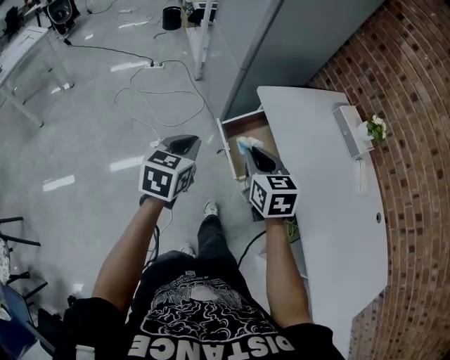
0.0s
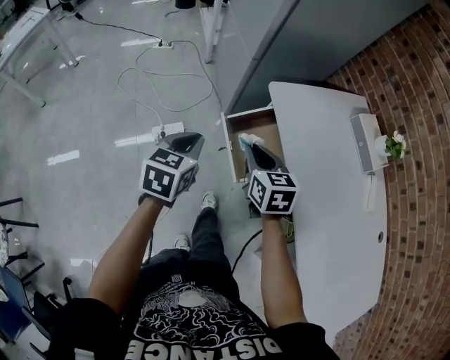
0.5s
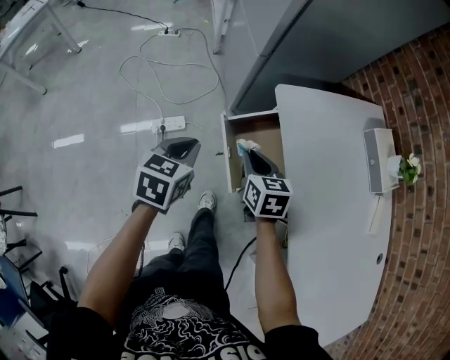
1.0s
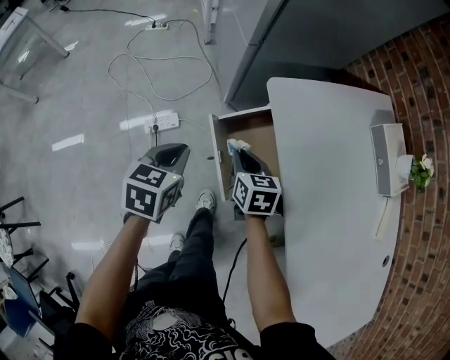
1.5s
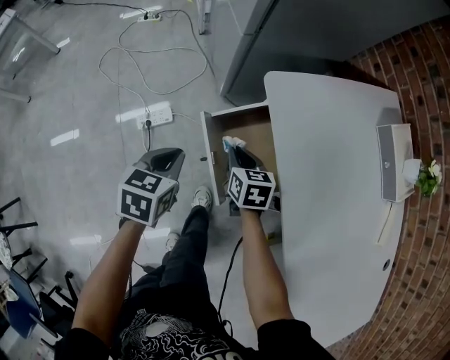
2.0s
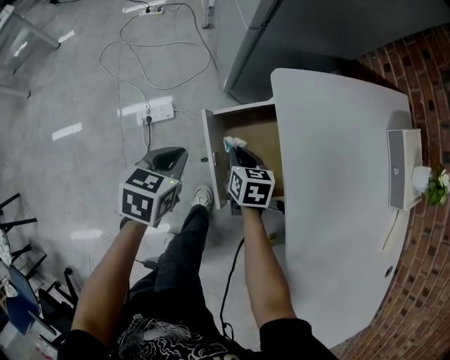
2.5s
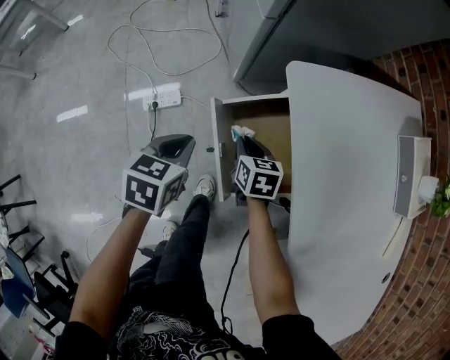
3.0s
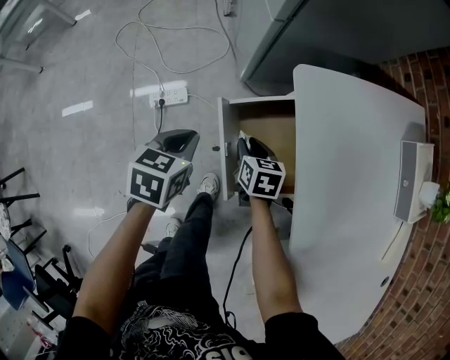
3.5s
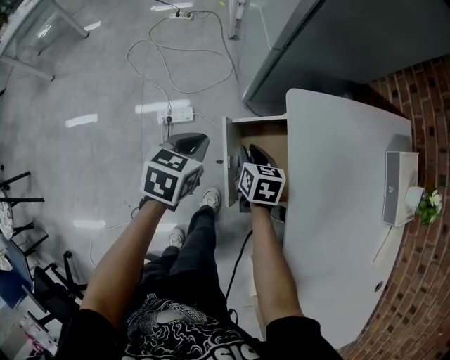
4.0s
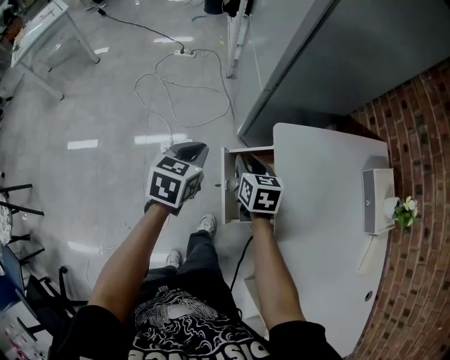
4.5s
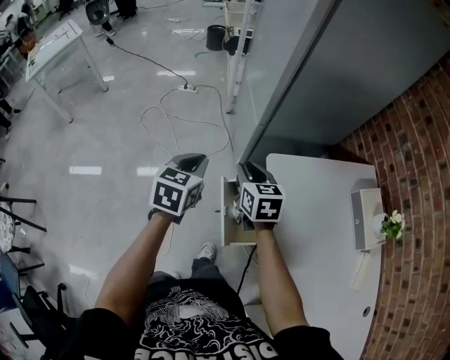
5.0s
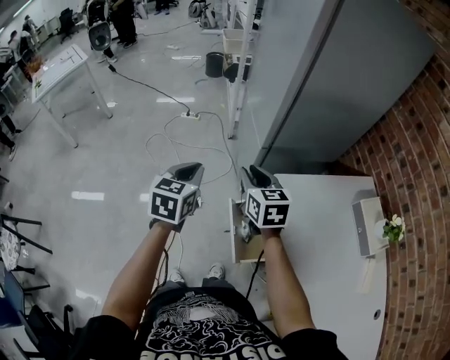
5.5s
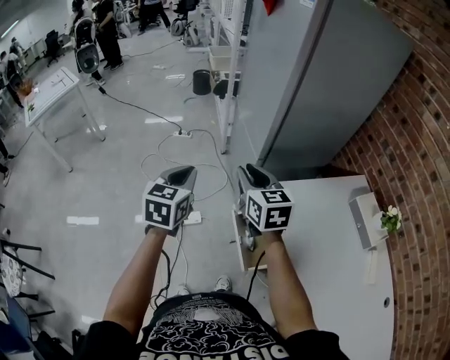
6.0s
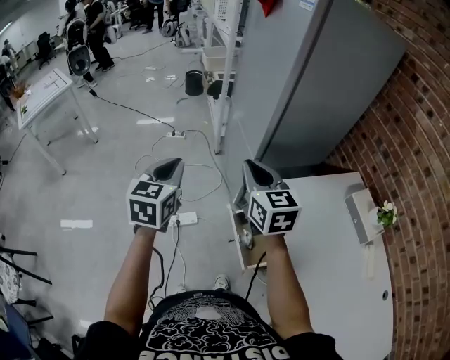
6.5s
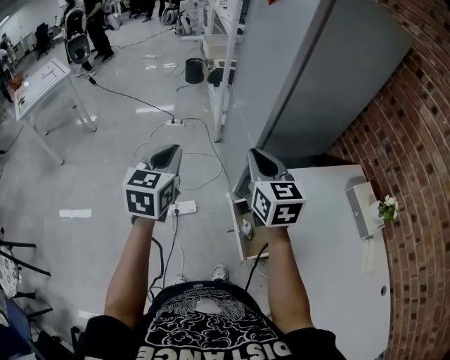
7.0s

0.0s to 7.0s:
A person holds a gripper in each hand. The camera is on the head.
0.0s to 2.0s: The grippers both shift downward and forward by approximately 30 cm. The left gripper changes its angle by roughly 20 degrees. Meanwhile the right gripper turns by approximately 20 degrees.
2.0s to 3.5s: The right gripper is displaced downward by some 5 cm.
3.5s to 5.0s: The grippers both shift upward by roughly 25 cm. The right gripper swivels about 20 degrees.
5.0s to 7.0s: The left gripper travels to the left and upward by approximately 20 cm. Meanwhile the right gripper is displaced upward by roughly 20 cm, rotates roughly 20 degrees, and closes its fingers.

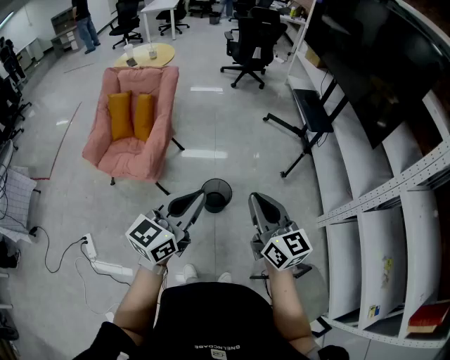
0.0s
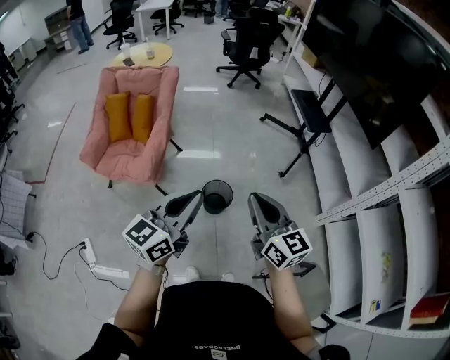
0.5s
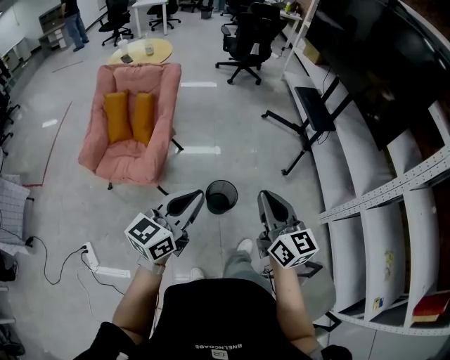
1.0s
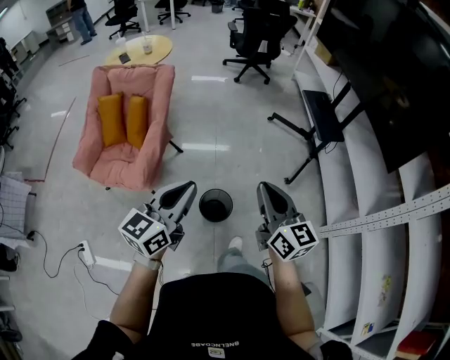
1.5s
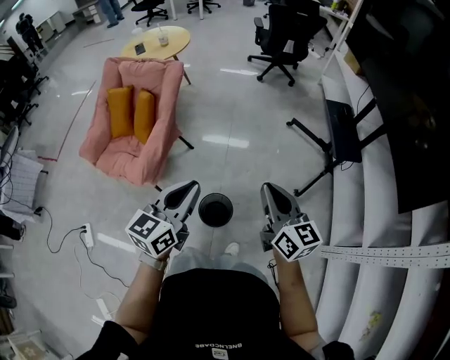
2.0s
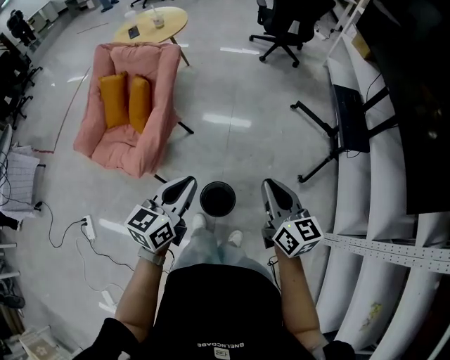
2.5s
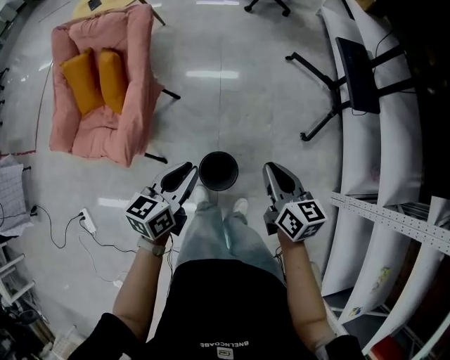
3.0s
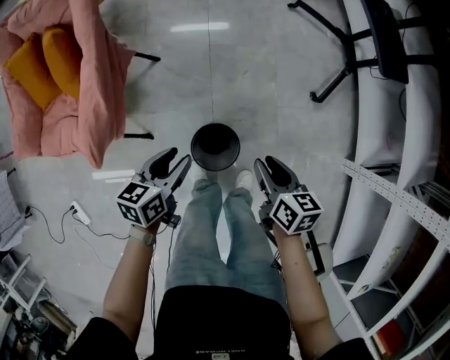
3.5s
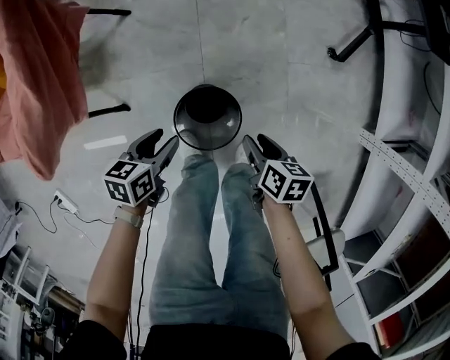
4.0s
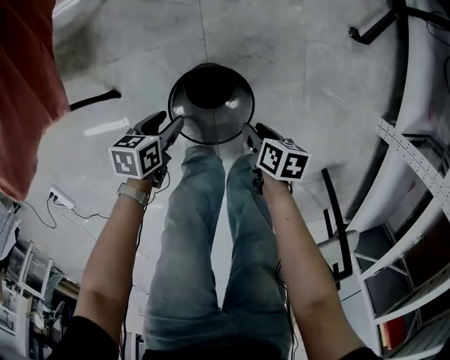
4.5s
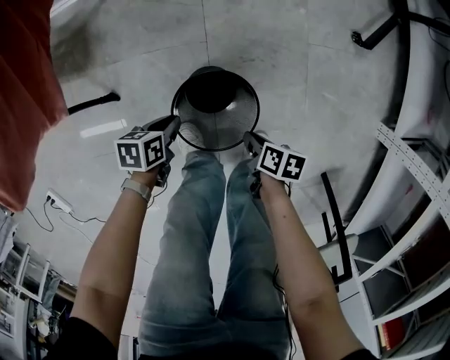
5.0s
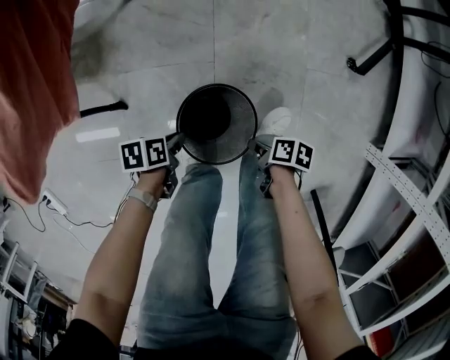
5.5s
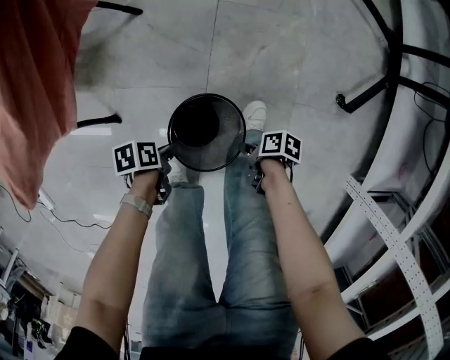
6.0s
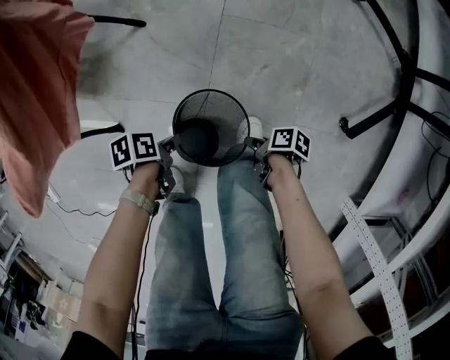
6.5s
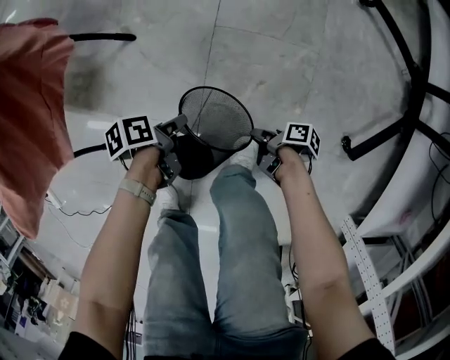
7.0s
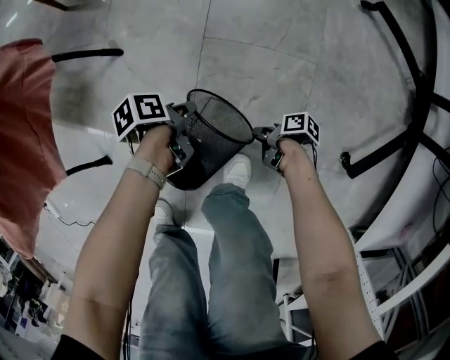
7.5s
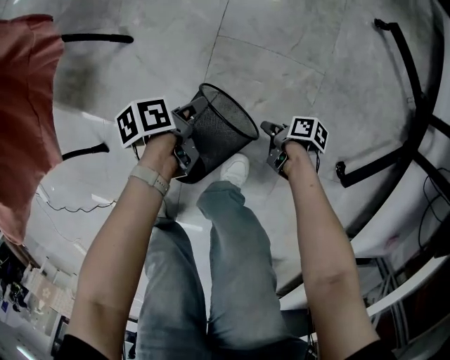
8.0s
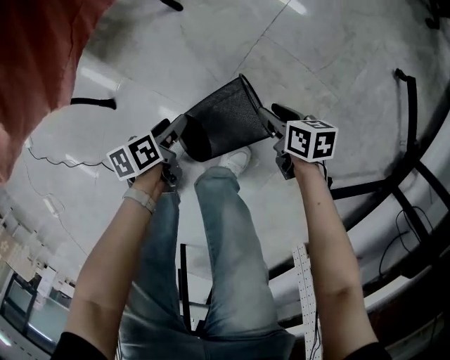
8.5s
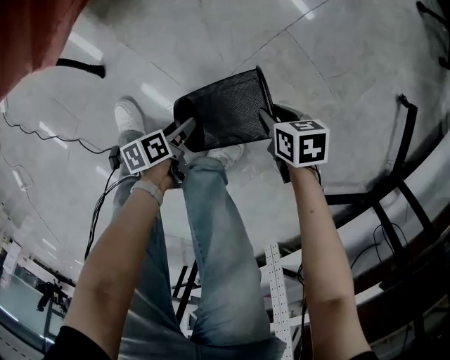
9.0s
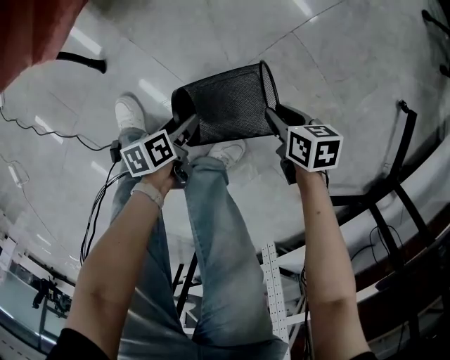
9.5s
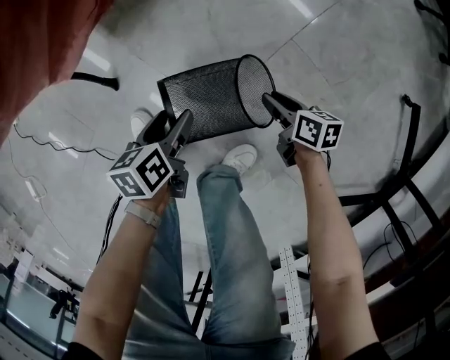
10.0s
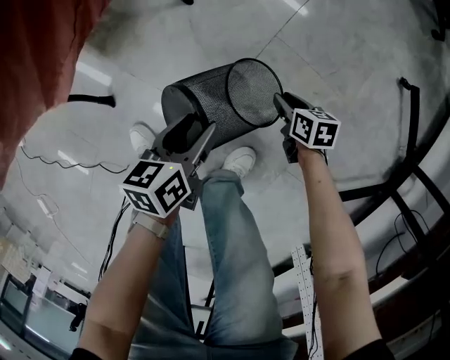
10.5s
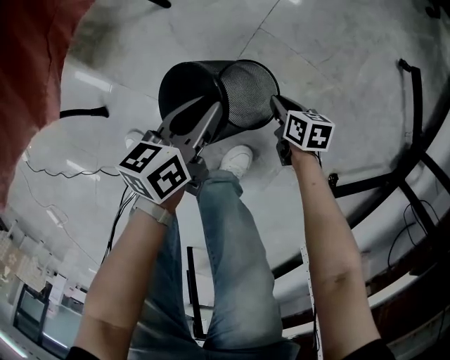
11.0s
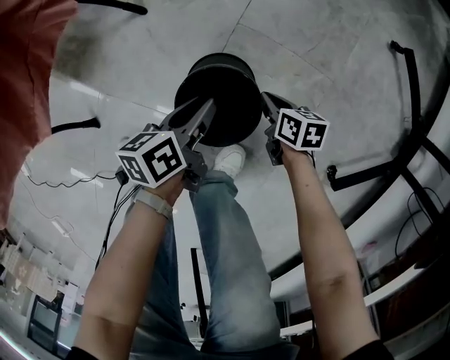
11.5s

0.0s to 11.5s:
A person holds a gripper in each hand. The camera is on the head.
0.0s to 2.0s: The two grippers go some 25 cm forward.
2.0s to 4.0s: Both grippers travel together downward, roughly 60 cm. The left gripper tilts its fingers some 40 degrees downward, and opens. Meanwhile the right gripper points its fingers some 50 degrees further downward, and opens its fingers.
4.0s to 6.0s: Both grippers move downward, about 15 cm. The left gripper twists some 40 degrees counterclockwise, seen from behind, and closes up. Meanwhile the right gripper swivels roughly 40 degrees, and closes.
6.0s to 7.5s: The left gripper ends up roughly 35 cm from where it was, and changes its angle by roughly 20 degrees, while the right gripper moves approximately 30 cm.
7.5s to 9.5s: The right gripper moves about 20 cm, and rolls counterclockwise, seen from behind, by some 80 degrees. Meanwhile the left gripper travels upward and back again, some 5 cm each way, turns by about 30 degrees, and opens.
9.5s to 11.5s: The right gripper moves approximately 10 cm, turns by some 30 degrees, and closes its fingers. Meanwhile the left gripper moves about 25 cm, changes its angle by roughly 30 degrees, and closes.

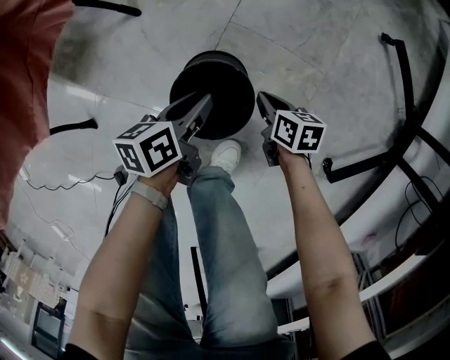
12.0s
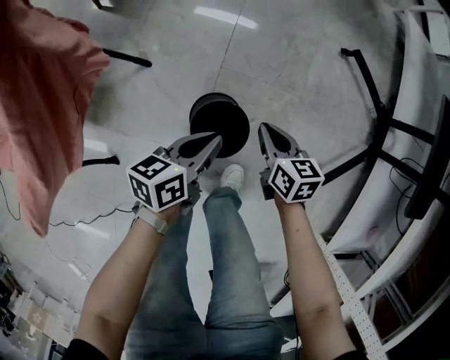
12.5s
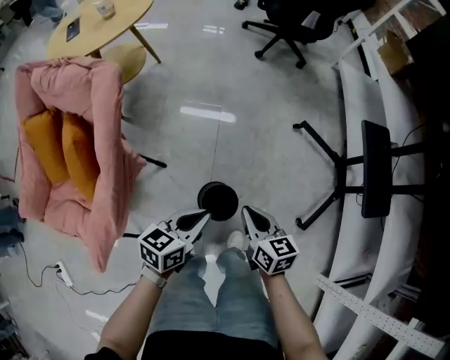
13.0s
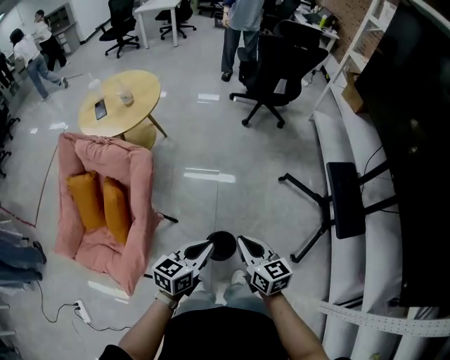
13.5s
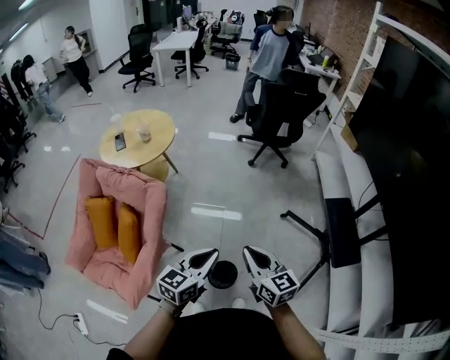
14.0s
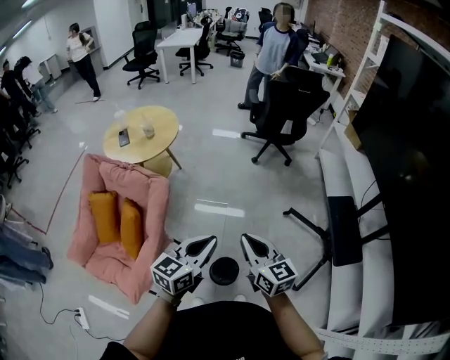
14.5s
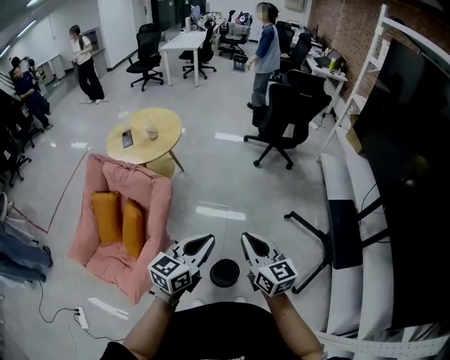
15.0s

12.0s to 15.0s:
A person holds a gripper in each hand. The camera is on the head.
12.0s to 13.5s: Both grippers move upward, some 60 cm. The right gripper tilts its fingers roughly 30 degrees upward; the left gripper rolls clockwise, seen from behind, by about 40 degrees.
13.5s to 15.0s: Both grippers travel together upward, about 15 cm.

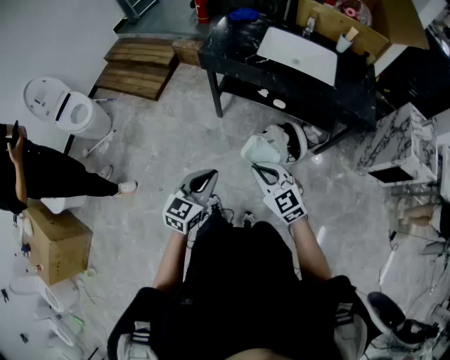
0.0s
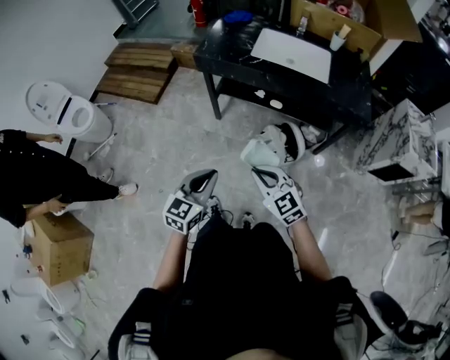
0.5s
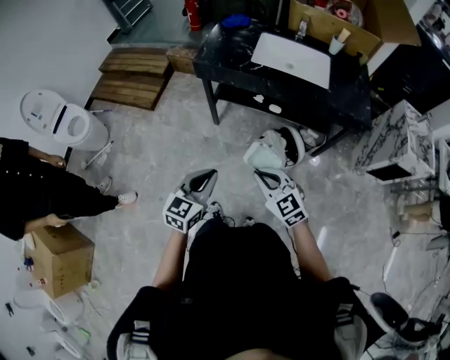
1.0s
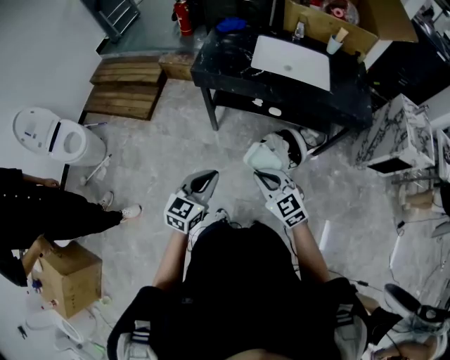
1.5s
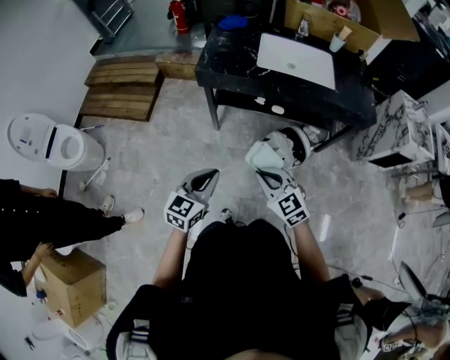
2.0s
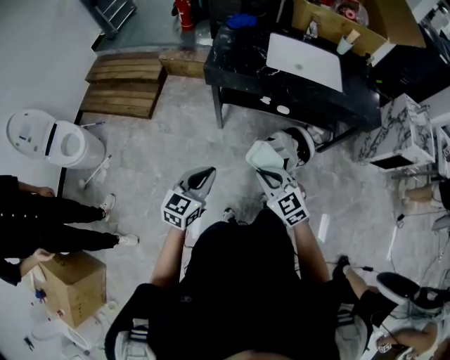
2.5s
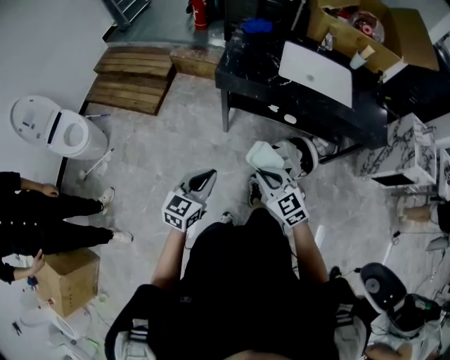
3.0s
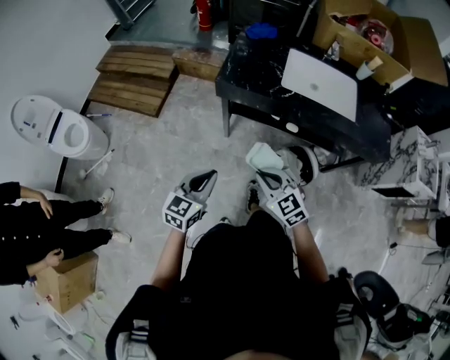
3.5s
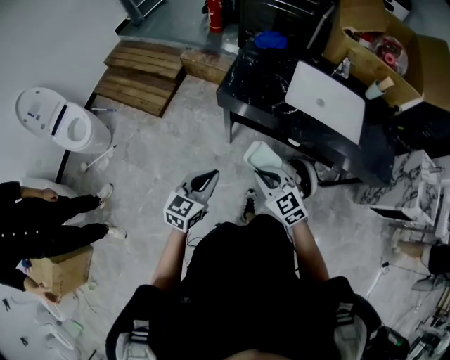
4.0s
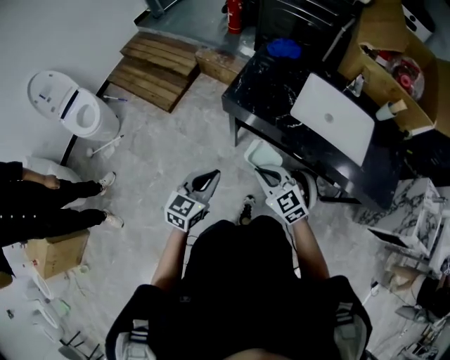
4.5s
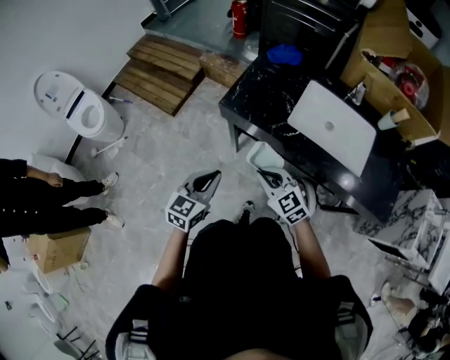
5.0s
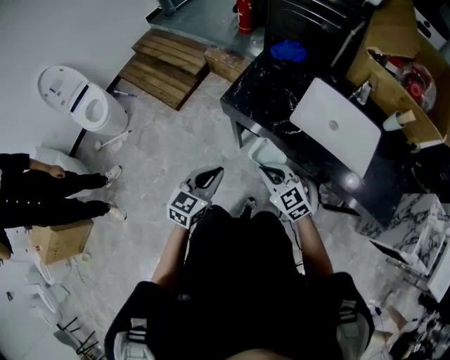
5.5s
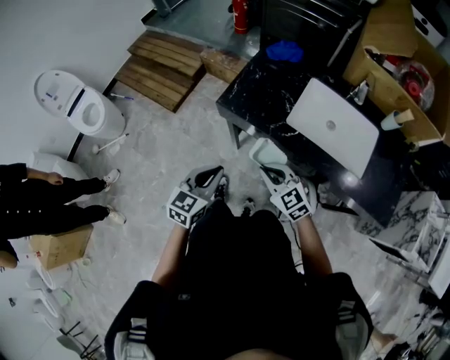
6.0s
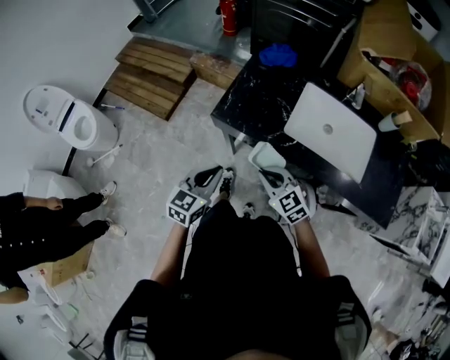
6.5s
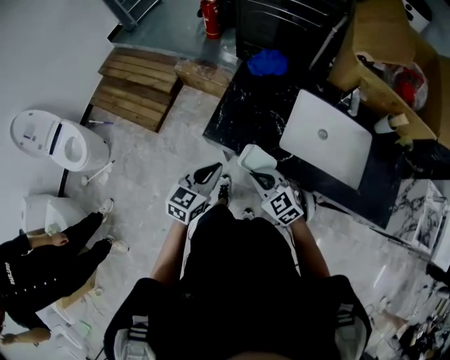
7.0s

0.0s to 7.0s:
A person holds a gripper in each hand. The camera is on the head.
0.0s to 2.0s: The two grippers go some 15 cm forward and to the left.
2.0s to 3.5s: The right gripper shifts approximately 10 cm forward, while the left gripper is displaced forward and to the left by some 10 cm.
3.5s to 5.0s: Both grippers travel together forward and to the right, about 15 cm.
5.0s to 7.0s: Both grippers move forward, about 15 cm.
